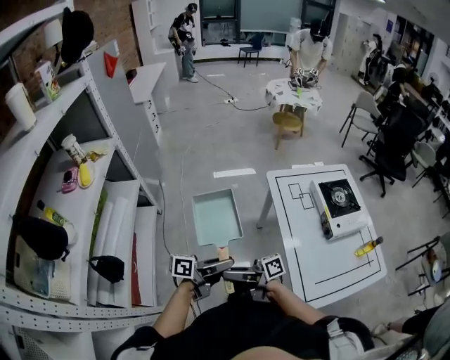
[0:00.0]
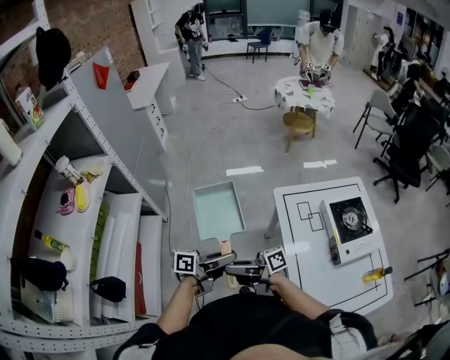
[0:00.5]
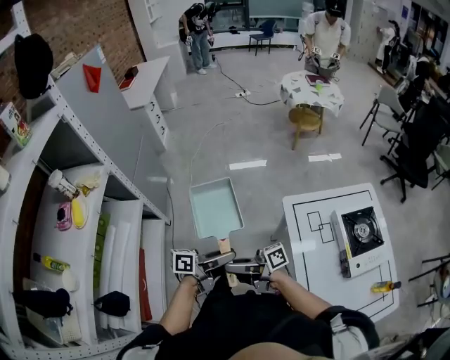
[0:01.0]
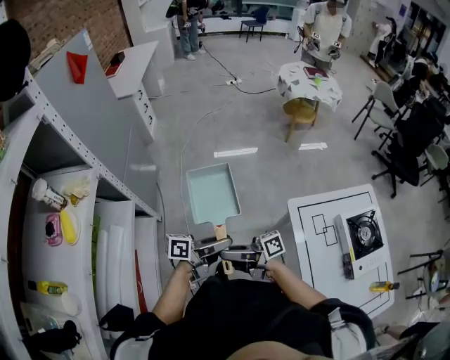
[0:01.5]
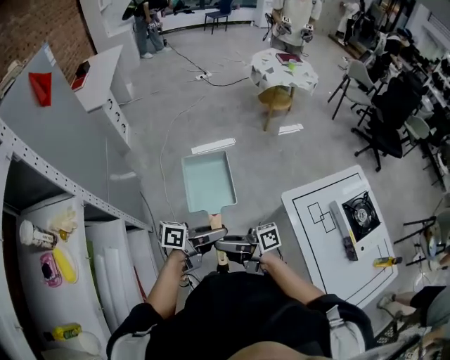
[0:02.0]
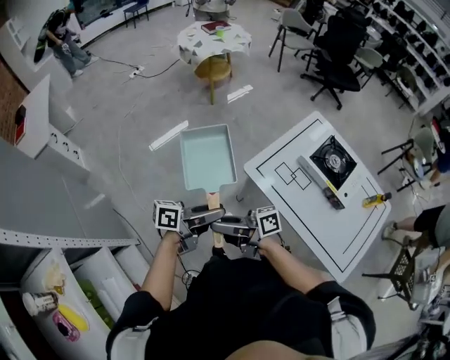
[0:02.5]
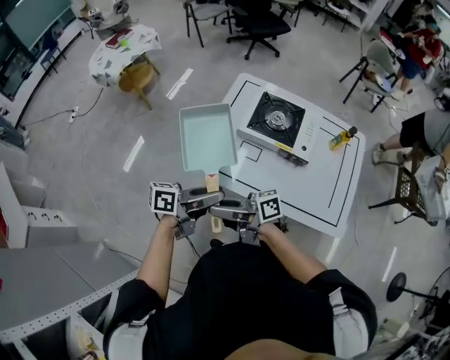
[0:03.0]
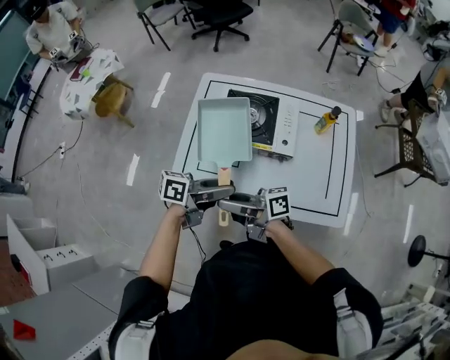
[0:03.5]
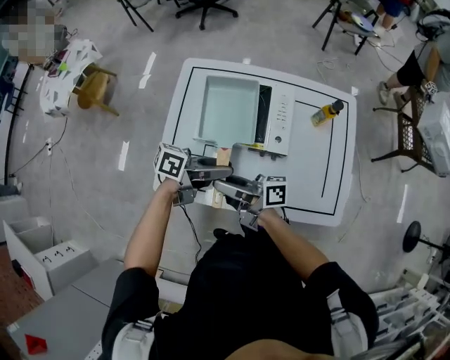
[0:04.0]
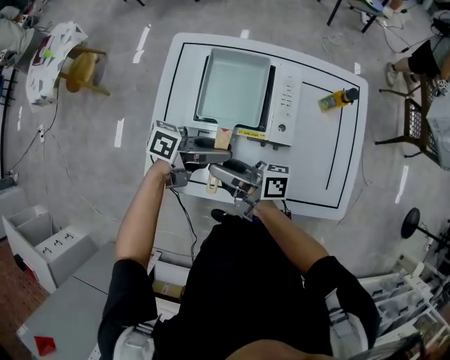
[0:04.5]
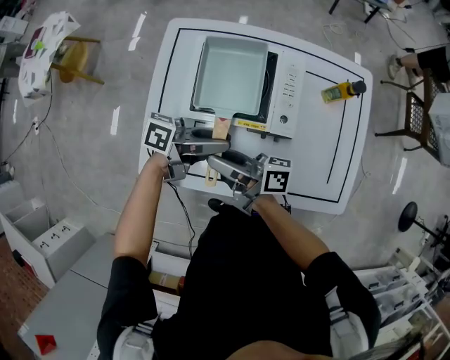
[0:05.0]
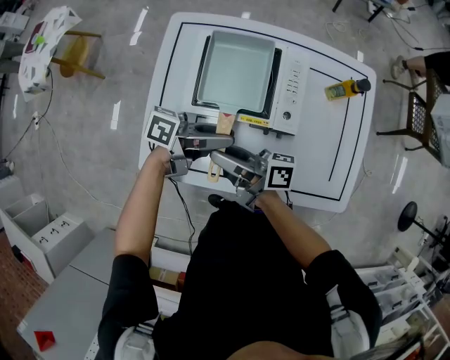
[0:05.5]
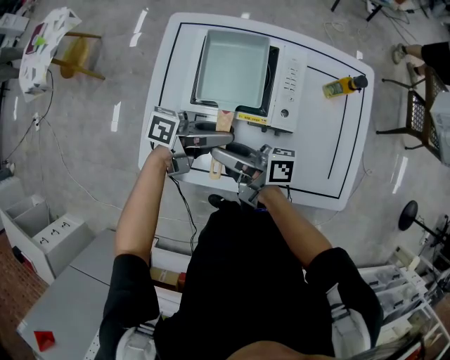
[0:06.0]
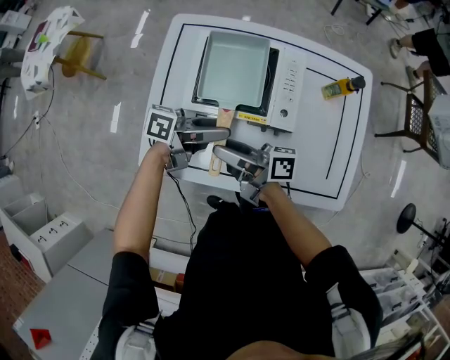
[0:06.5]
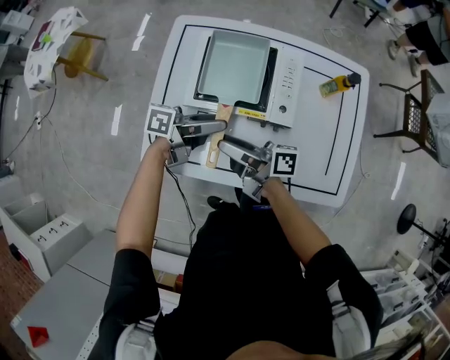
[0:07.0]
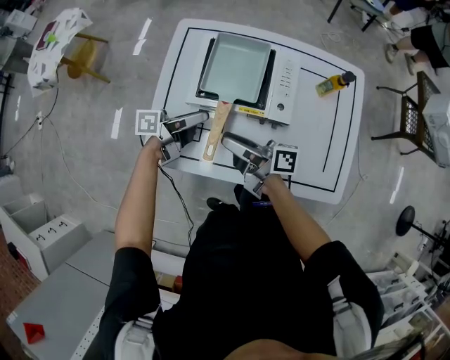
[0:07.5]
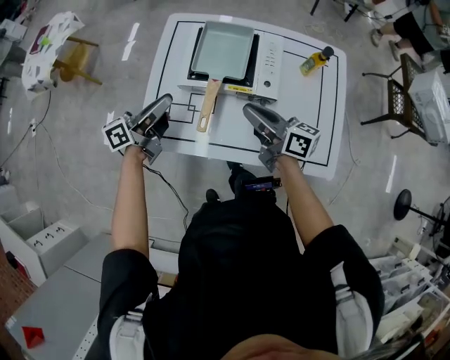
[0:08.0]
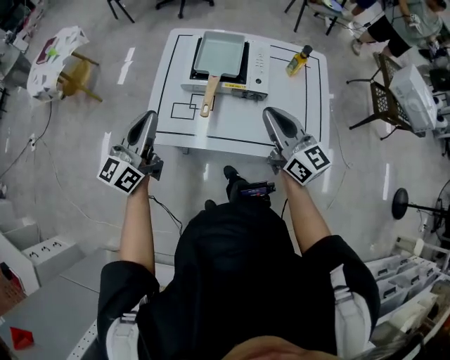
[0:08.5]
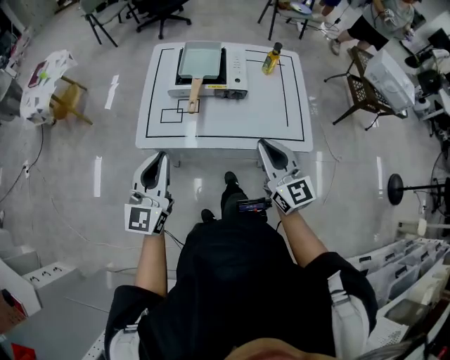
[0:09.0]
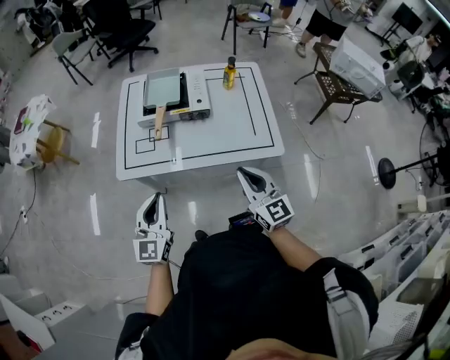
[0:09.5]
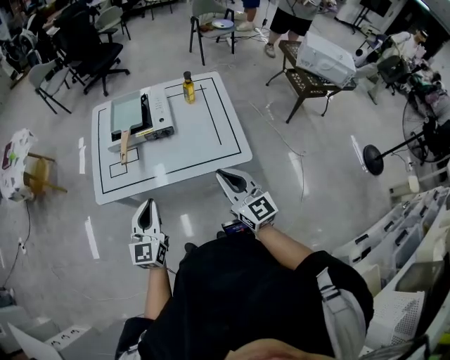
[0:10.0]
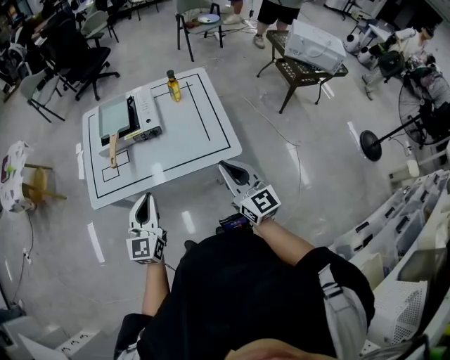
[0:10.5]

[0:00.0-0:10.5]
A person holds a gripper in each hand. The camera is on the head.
0:00.0 to 0:02.0: Both grippers are carried approximately 40 cm.
0:02.0 to 0:04.0: The pair of grippers is taken roughly 50 cm. The left gripper rotates roughly 80 degrees, while the right gripper rotates approximately 80 degrees.
0:04.0 to 0:06.5: The left gripper ends up approximately 5 cm from where it was. Meanwhile the right gripper moves about 5 cm.
0:06.5 to 0:08.5: The right gripper shifts by about 25 cm, rotates around the line of its fingers by about 60 degrees, counterclockwise from behind, and closes its fingers. Meanwhile the left gripper moves about 30 cm, rotates roughly 70 degrees, and closes up.
0:08.5 to 0:10.5: The left gripper is displaced to the right and backward by some 30 cm, and swivels some 20 degrees. Meanwhile the right gripper shifts about 30 cm backward and to the right, and turns by about 30 degrees.

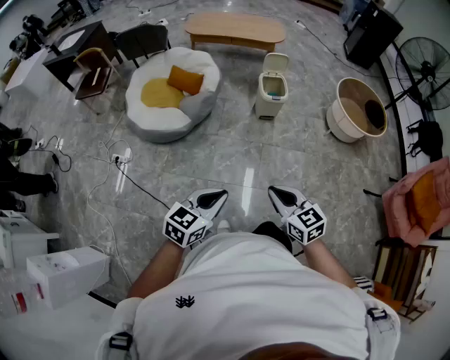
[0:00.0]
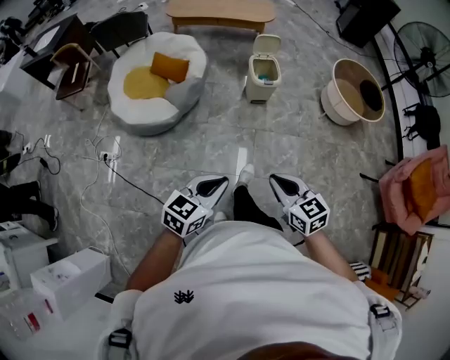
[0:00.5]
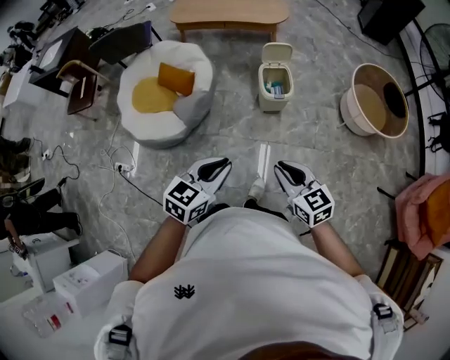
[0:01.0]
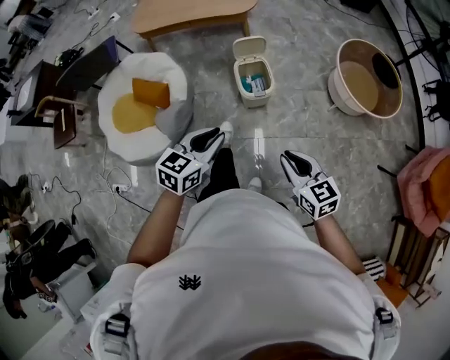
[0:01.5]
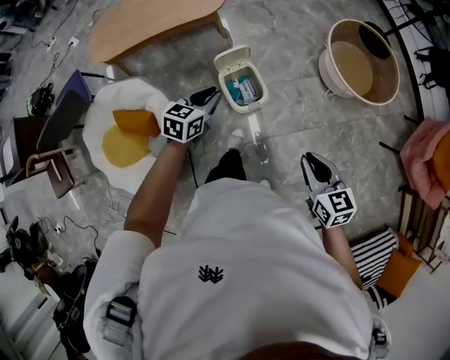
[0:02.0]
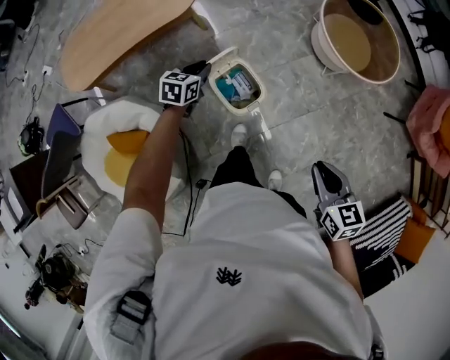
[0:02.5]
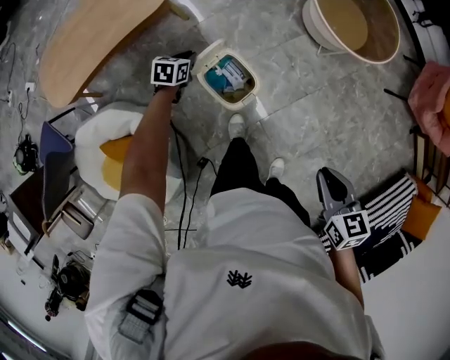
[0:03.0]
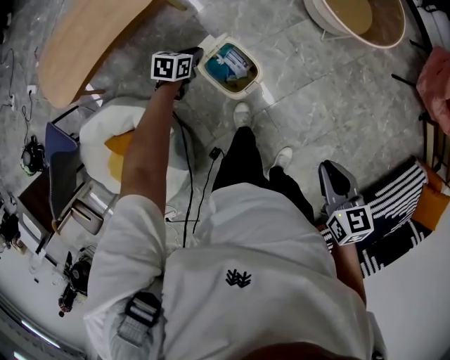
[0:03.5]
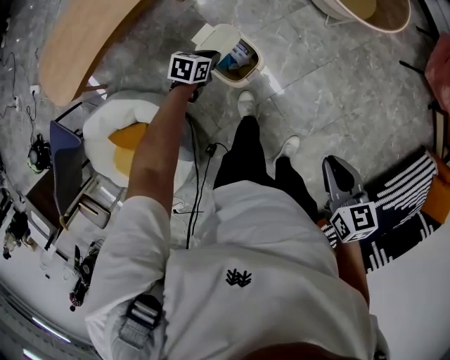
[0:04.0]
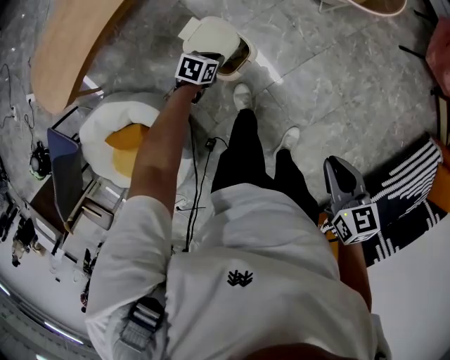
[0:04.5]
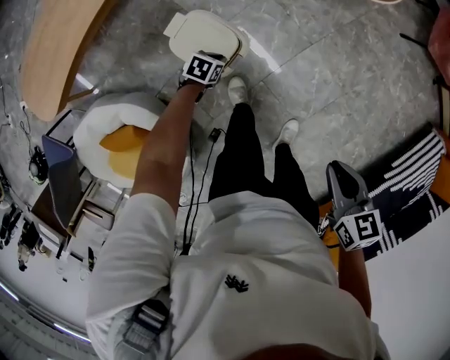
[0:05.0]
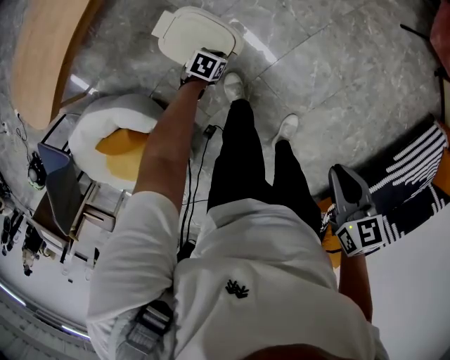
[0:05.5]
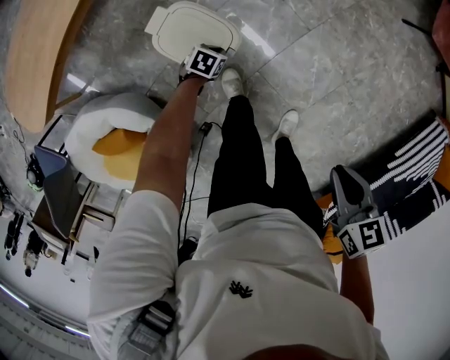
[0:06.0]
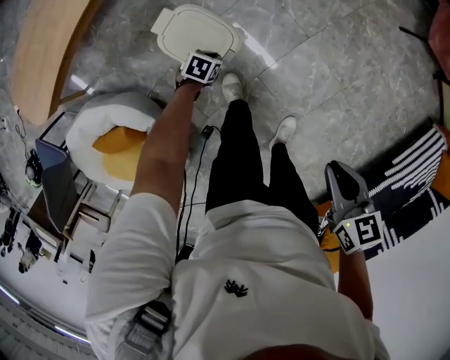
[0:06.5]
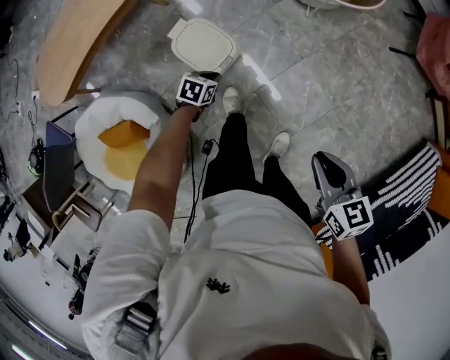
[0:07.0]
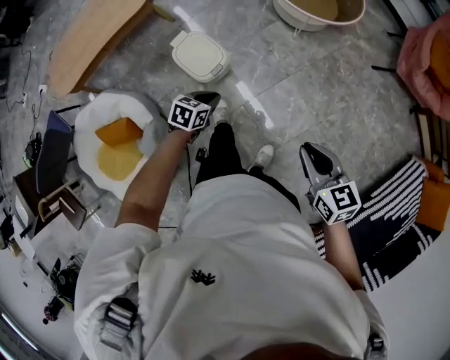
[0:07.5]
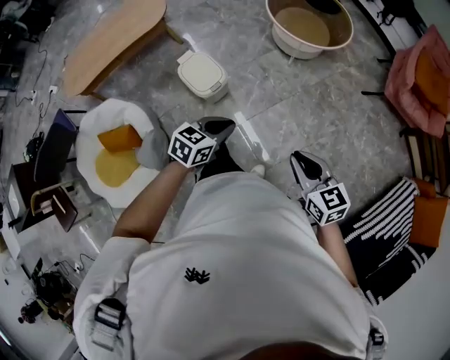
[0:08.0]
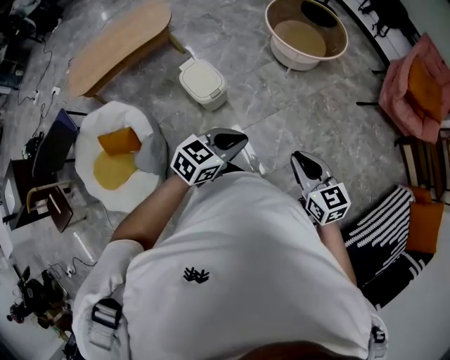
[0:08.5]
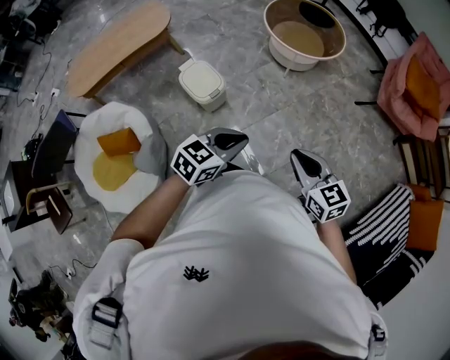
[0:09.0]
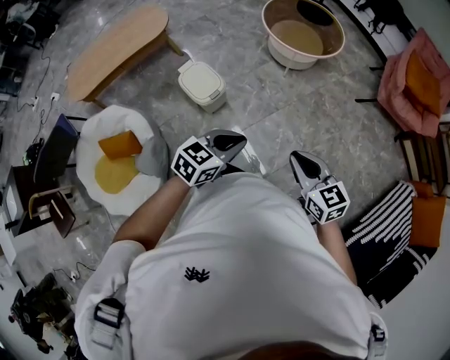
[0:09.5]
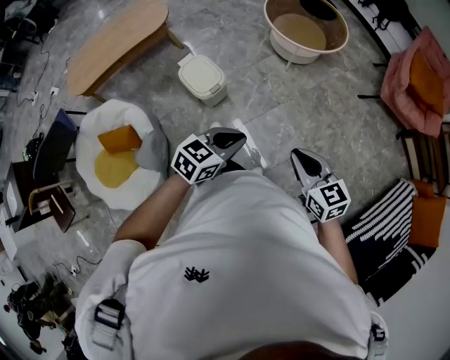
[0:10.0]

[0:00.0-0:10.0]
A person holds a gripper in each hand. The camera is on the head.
0:00.0 to 0:02.0: Both grippers are carried approximately 70 cm. The right gripper rotates approximately 40 degrees.
0:02.0 to 0:04.0: The left gripper moves downward, roughly 30 cm, and swivels some 40 degrees. The right gripper heads downward, covering roughly 5 cm, and turns by about 30 degrees.
0:04.0 to 0:06.0: The right gripper shifts roughly 10 cm downward and to the right. Meanwhile the left gripper is displaced downward and to the right by approximately 25 cm, and changes its angle by some 20 degrees.
0:06.0 to 0:08.0: The right gripper goes about 20 cm upward, to the right and backward, and swivels about 30 degrees; the left gripper shifts some 60 cm upward, to the right and backward, and tips its fingers upward by roughly 30 degrees.
0:08.0 to 0:10.0: The left gripper heads upward and to the right, covering roughly 10 cm.

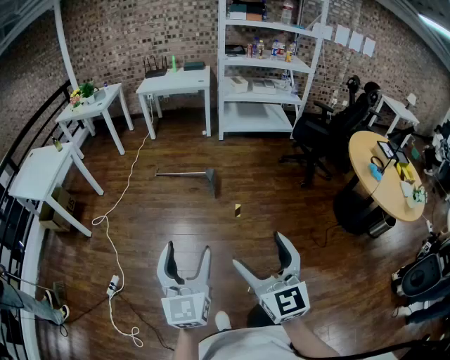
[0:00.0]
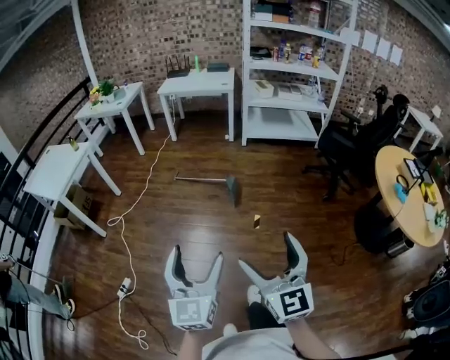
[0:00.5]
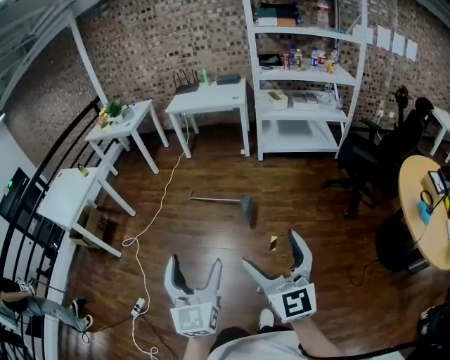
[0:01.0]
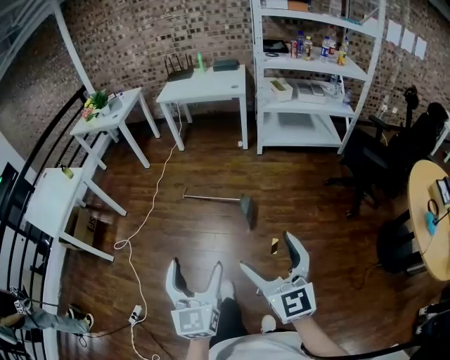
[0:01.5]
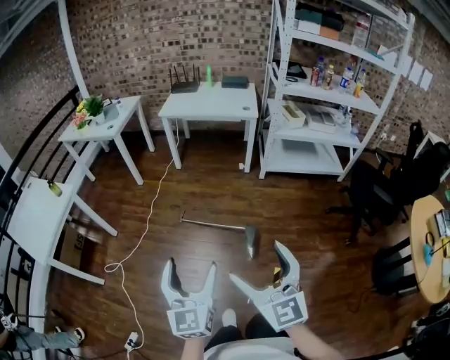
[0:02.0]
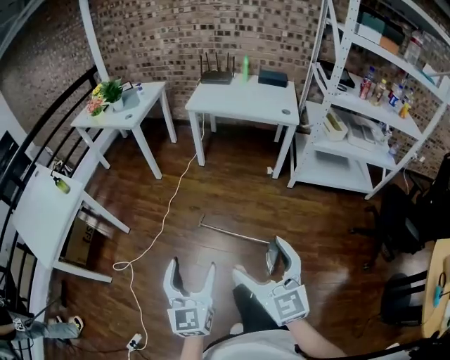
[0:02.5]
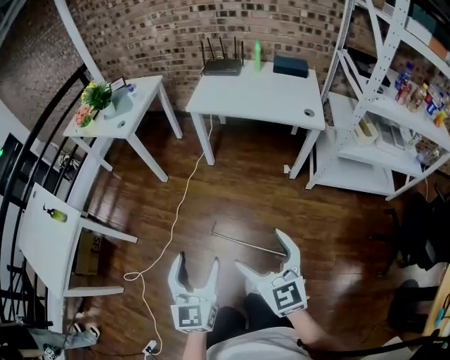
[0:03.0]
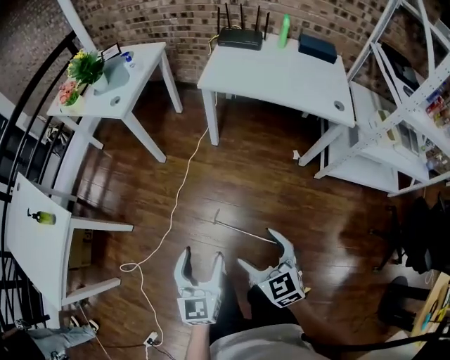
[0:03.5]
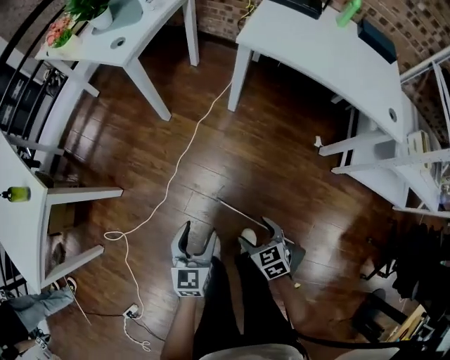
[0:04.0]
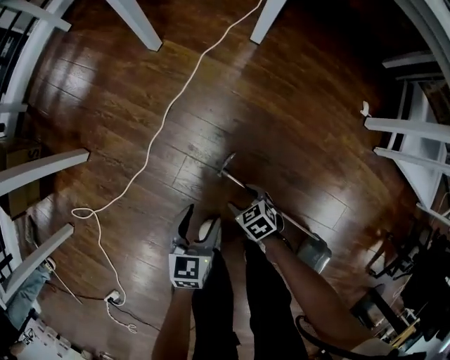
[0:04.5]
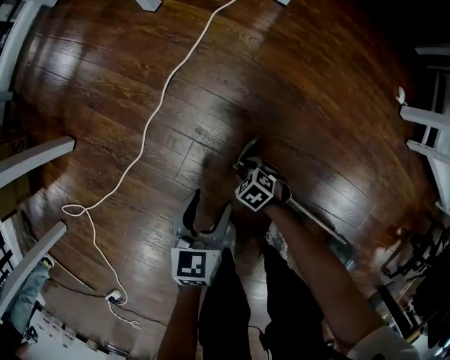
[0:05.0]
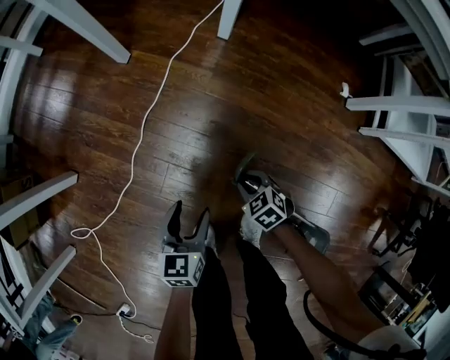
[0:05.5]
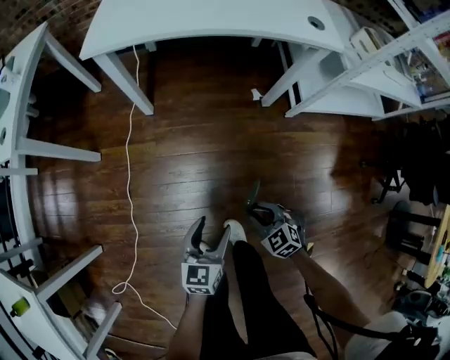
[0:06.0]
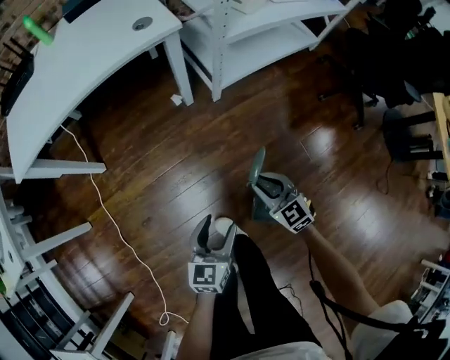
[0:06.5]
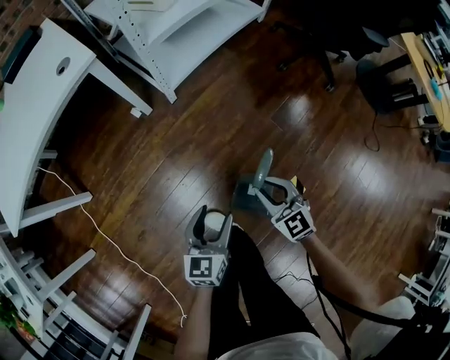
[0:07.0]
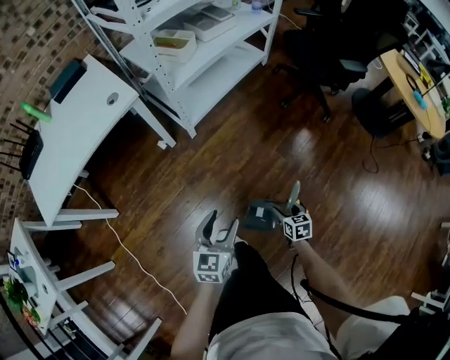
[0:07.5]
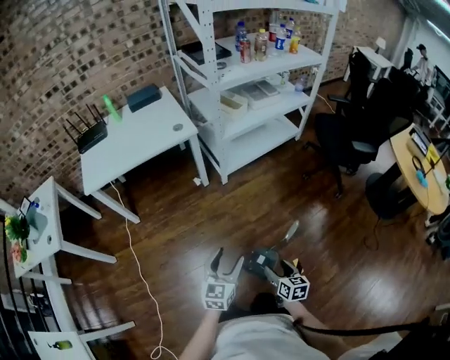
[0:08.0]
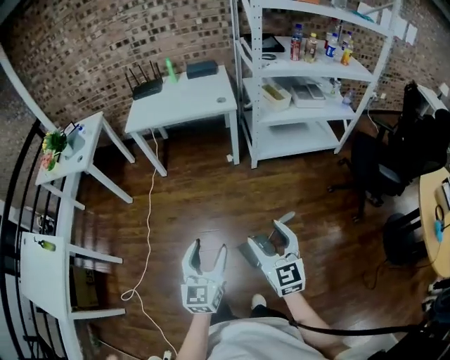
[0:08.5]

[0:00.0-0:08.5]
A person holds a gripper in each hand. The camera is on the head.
0:00.0 to 0:02.0: The two grippers travel together, forward, roughly 60 cm.
0:02.0 to 0:04.0: Both grippers are carried forward, approximately 60 cm. Both grippers travel together downward, some 40 cm. The left gripper rotates approximately 30 degrees, while the right gripper tilts its fingers approximately 50 degrees downward.
0:04.0 to 0:06.5: The pair of grippers is taken about 40 cm. The right gripper rotates approximately 50 degrees, and closes up. The left gripper swivels some 60 degrees.
0:06.5 to 0:08.5: Both grippers travel together upward, about 40 cm. The left gripper rotates about 40 degrees, while the right gripper changes its angle by approximately 20 degrees, and opens its fingers.
